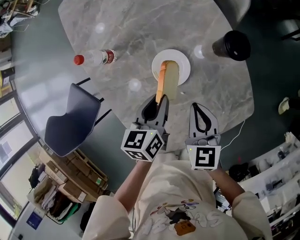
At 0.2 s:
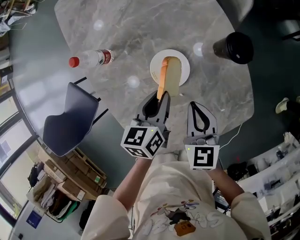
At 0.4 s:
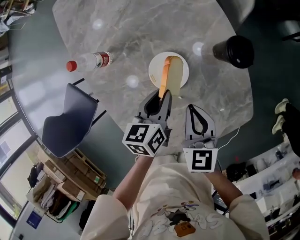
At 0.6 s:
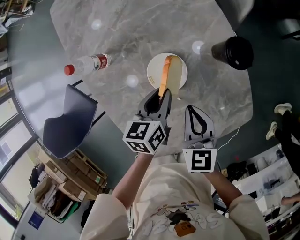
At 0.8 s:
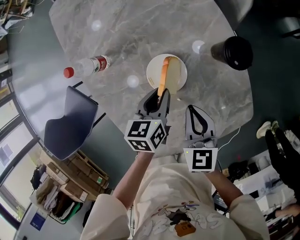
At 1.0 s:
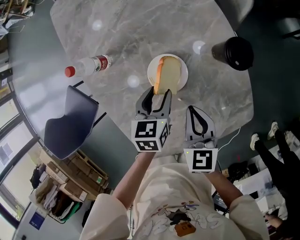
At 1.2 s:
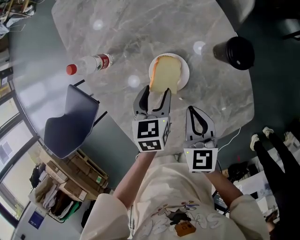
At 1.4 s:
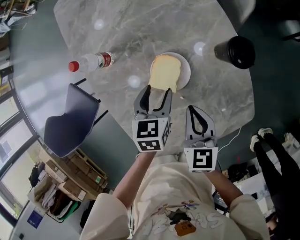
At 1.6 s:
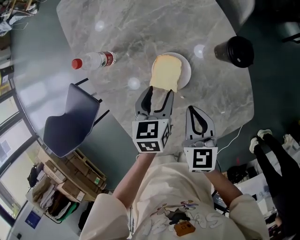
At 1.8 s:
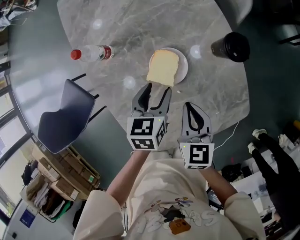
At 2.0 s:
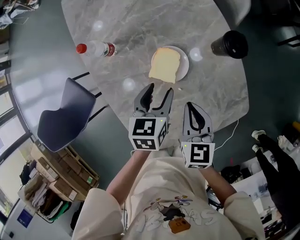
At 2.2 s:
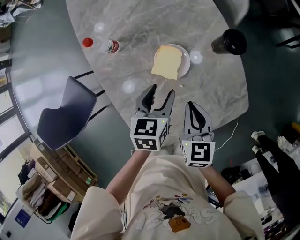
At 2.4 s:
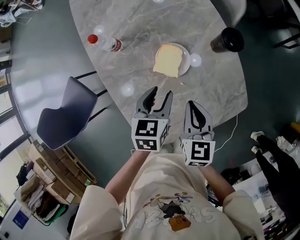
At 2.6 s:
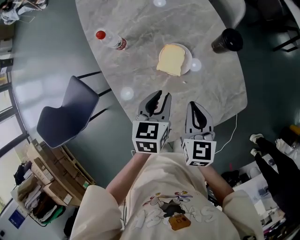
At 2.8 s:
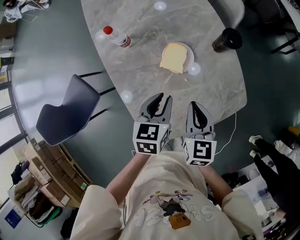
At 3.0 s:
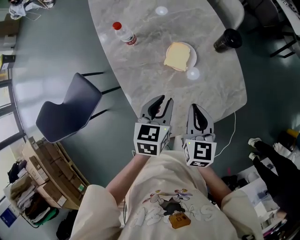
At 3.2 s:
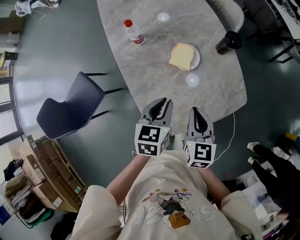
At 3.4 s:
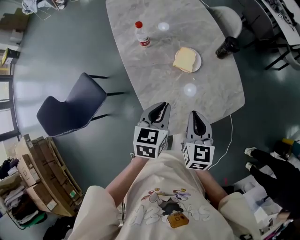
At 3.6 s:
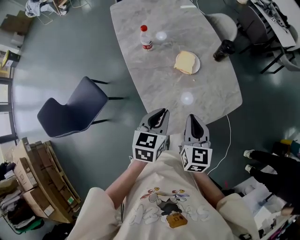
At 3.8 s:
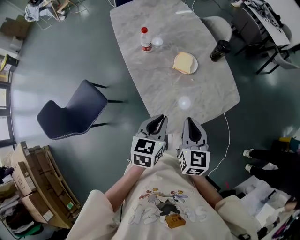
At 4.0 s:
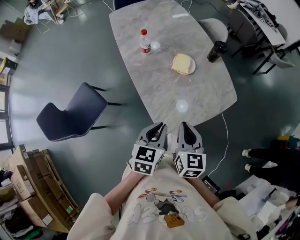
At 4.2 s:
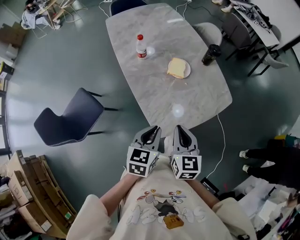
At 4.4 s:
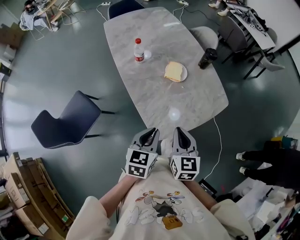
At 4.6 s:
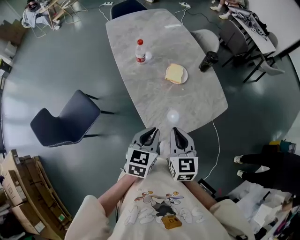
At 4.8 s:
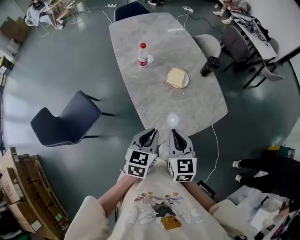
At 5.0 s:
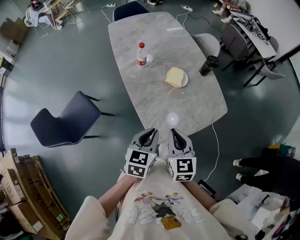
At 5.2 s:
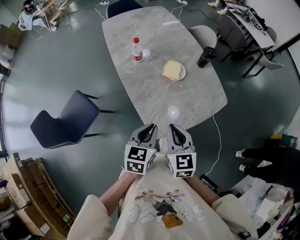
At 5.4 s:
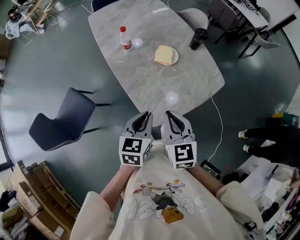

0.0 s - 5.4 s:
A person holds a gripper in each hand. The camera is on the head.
0.0 s - 1.4 s: The left gripper is displaced downward by roughly 5 cm, and opens up.
1.4 s - 2.8 s: The two grippers go about 15 cm backward and upward. The left gripper closes up.
2.8 s - 4.0 s: Both grippers move backward, some 25 cm.
4.0 s - 5.4 s: The right gripper moves to the left, roughly 5 cm.

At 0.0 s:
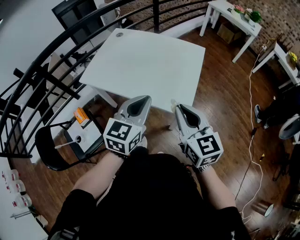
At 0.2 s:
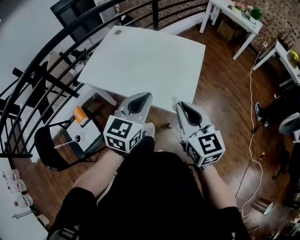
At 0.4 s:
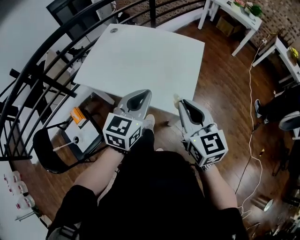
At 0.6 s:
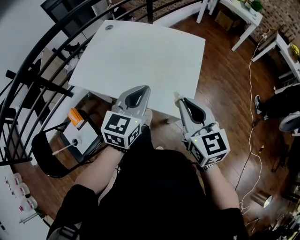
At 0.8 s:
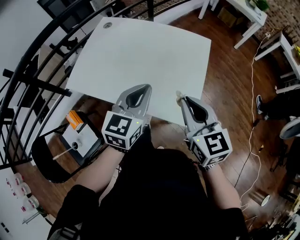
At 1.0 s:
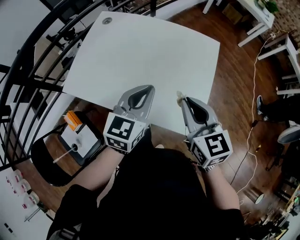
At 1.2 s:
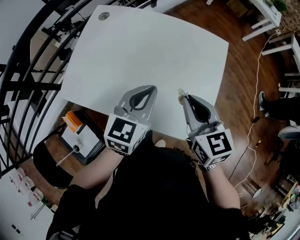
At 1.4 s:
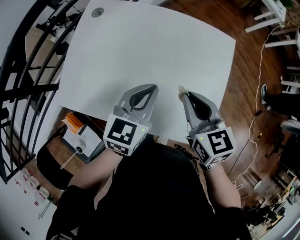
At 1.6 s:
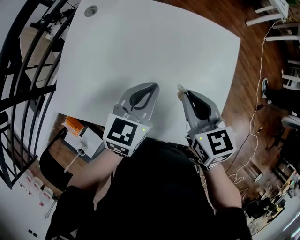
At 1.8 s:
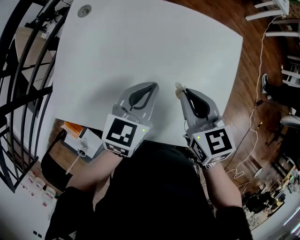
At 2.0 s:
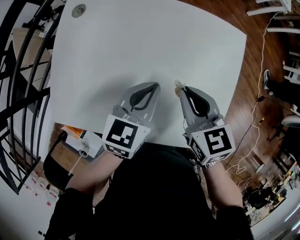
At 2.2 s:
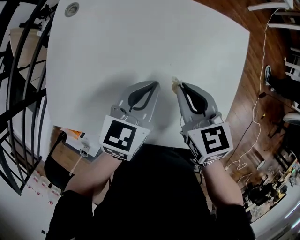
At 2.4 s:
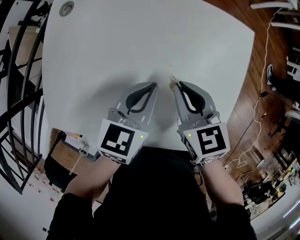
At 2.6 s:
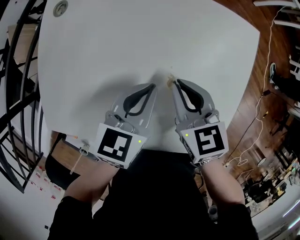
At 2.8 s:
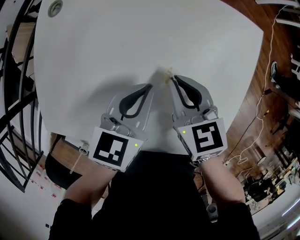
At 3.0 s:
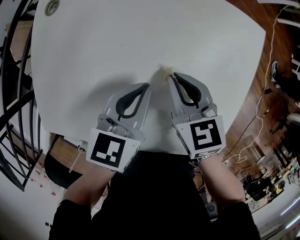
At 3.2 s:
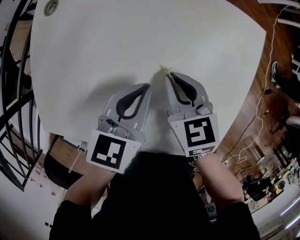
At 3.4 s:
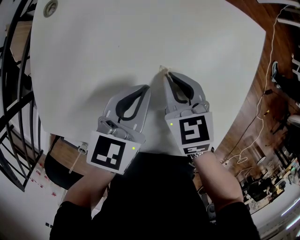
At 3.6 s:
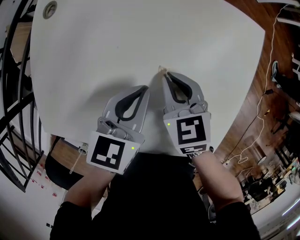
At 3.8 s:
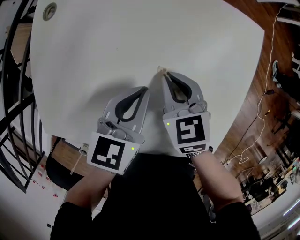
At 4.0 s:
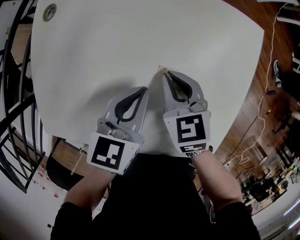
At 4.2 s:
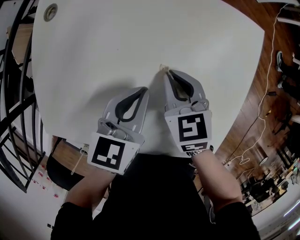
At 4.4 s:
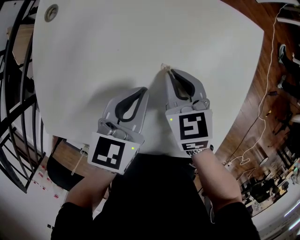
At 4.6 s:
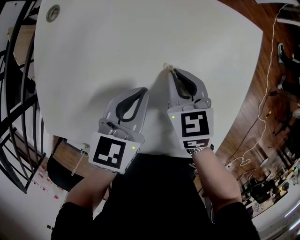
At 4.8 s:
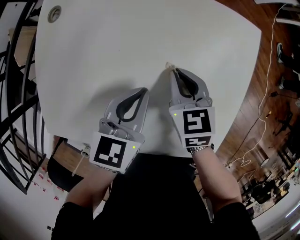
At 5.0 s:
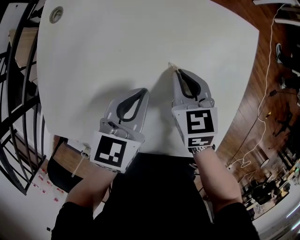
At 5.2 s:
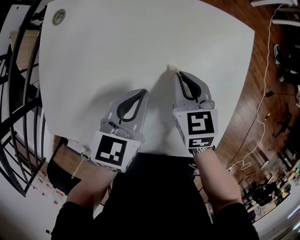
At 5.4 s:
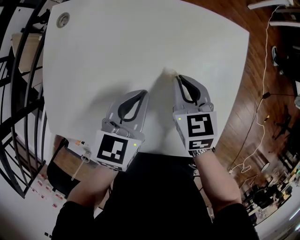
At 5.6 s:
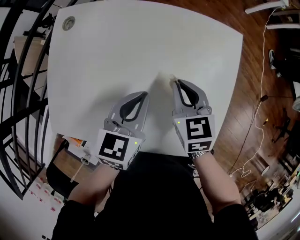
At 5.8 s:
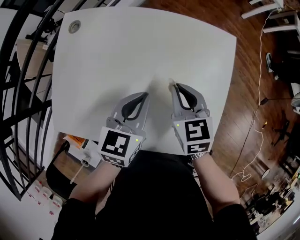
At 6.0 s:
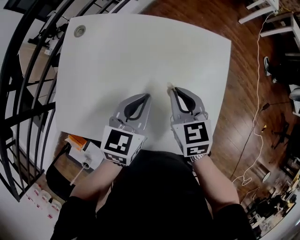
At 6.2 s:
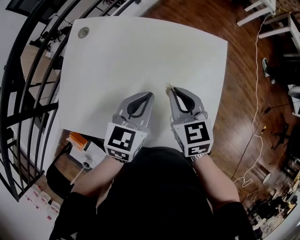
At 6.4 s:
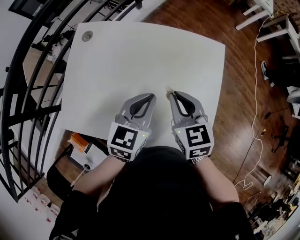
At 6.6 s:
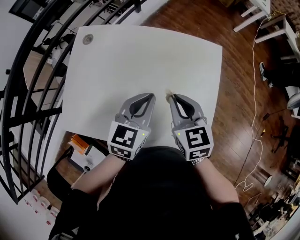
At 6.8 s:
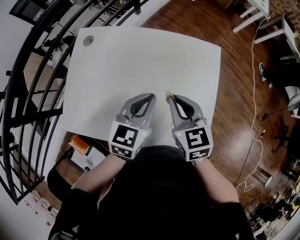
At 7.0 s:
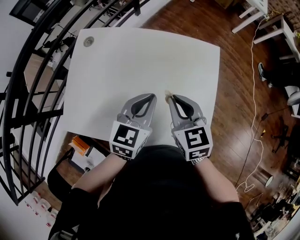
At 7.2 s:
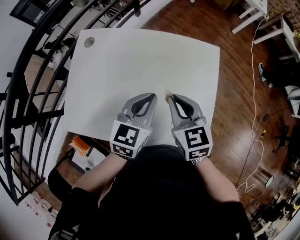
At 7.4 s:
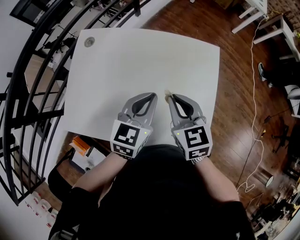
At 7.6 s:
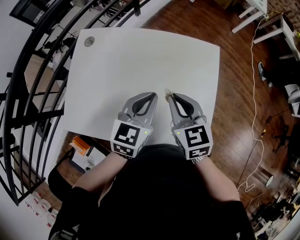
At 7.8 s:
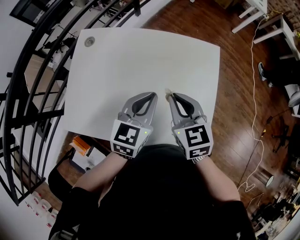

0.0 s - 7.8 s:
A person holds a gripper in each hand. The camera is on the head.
0.0 s - 1.6 s: The left gripper shifts some 35 cm forward and downward; the right gripper shifts roughly 35 cm forward, and turns by approximately 20 degrees.
1.6 s - 3.2 s: The right gripper goes some 15 cm downward and forward; the left gripper travels downward and forward by roughly 10 cm.
3.2 s - 4.6 s: The grippers move only a little.
4.6 s - 6.2 s: The left gripper is displaced upward by approximately 10 cm. The right gripper heads upward and backward, covering approximately 15 cm.
6.2 s - 7.8 s: The grippers make only small movements.

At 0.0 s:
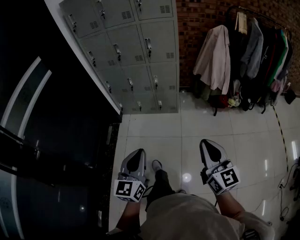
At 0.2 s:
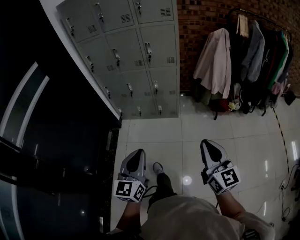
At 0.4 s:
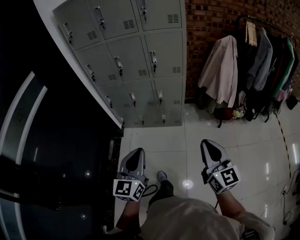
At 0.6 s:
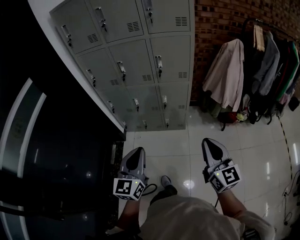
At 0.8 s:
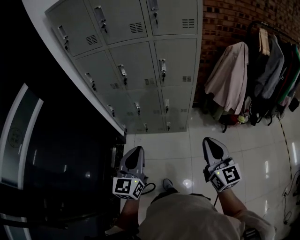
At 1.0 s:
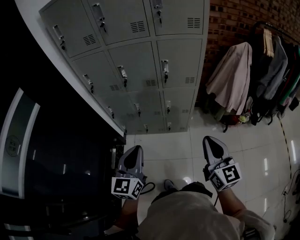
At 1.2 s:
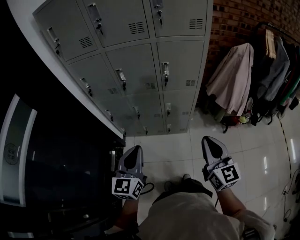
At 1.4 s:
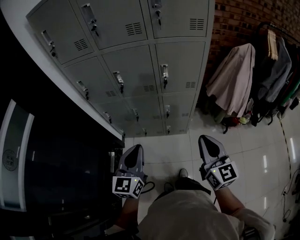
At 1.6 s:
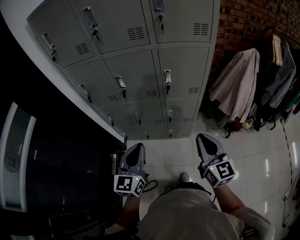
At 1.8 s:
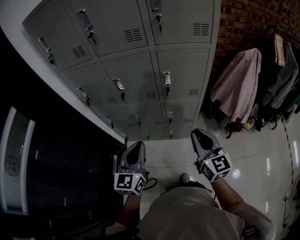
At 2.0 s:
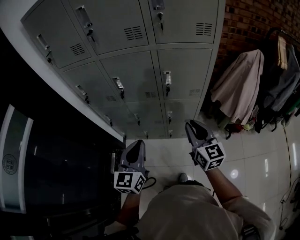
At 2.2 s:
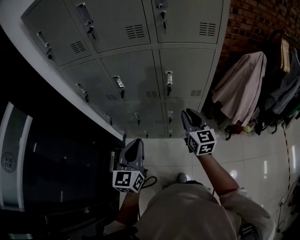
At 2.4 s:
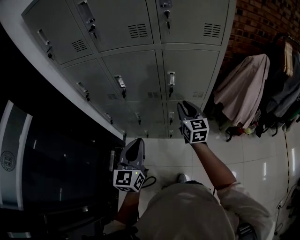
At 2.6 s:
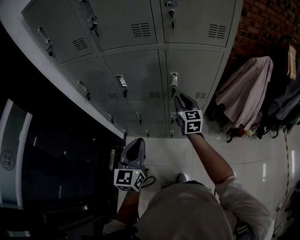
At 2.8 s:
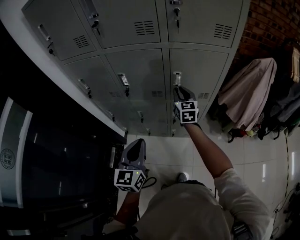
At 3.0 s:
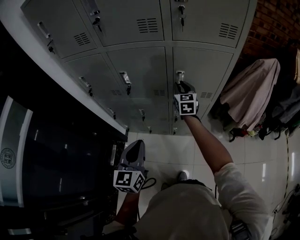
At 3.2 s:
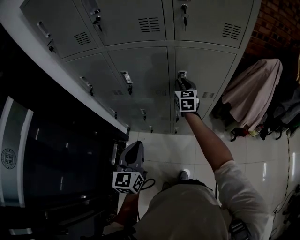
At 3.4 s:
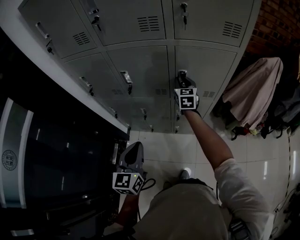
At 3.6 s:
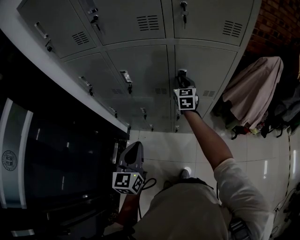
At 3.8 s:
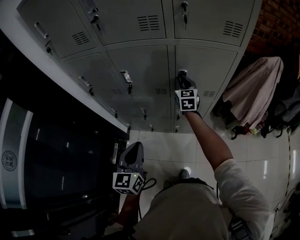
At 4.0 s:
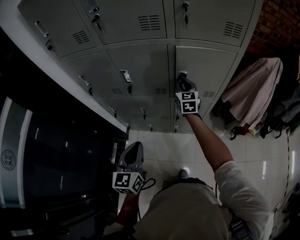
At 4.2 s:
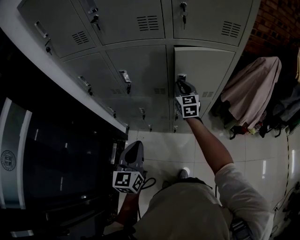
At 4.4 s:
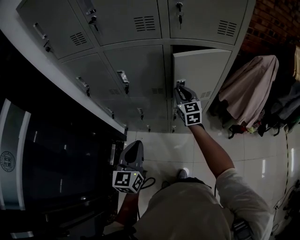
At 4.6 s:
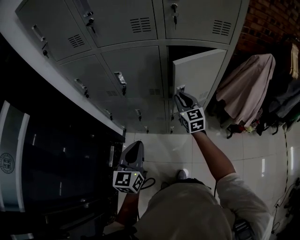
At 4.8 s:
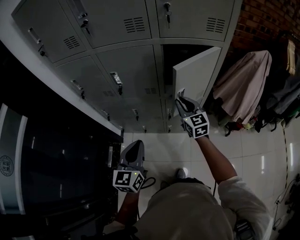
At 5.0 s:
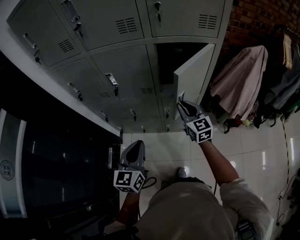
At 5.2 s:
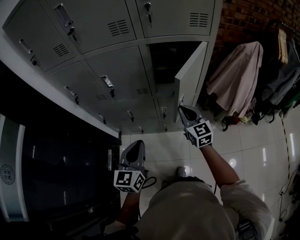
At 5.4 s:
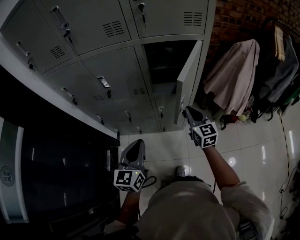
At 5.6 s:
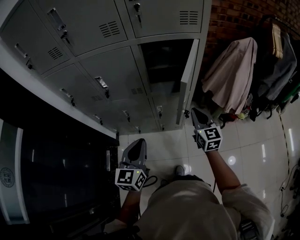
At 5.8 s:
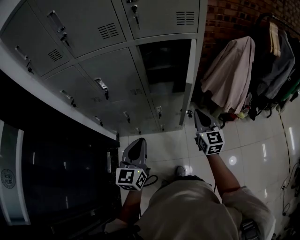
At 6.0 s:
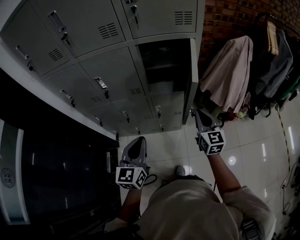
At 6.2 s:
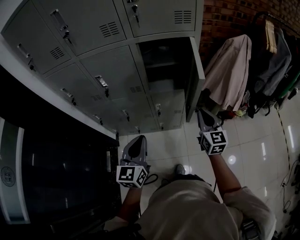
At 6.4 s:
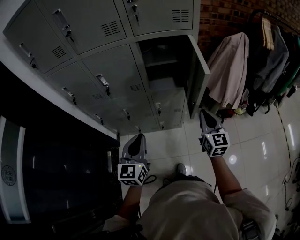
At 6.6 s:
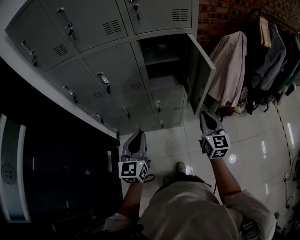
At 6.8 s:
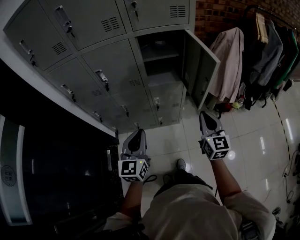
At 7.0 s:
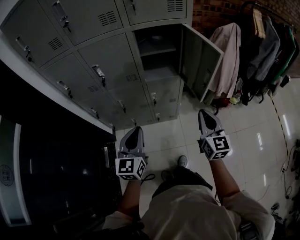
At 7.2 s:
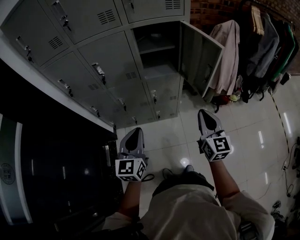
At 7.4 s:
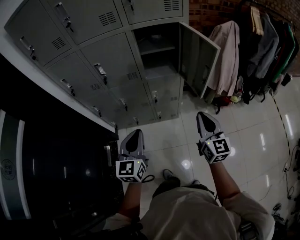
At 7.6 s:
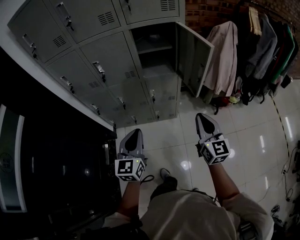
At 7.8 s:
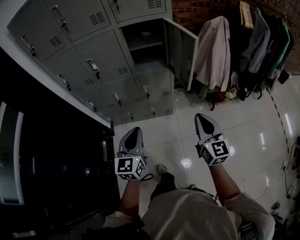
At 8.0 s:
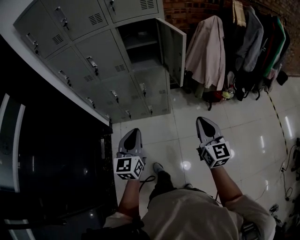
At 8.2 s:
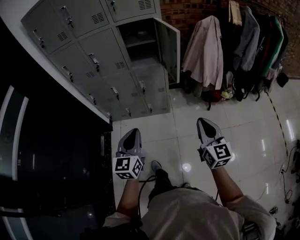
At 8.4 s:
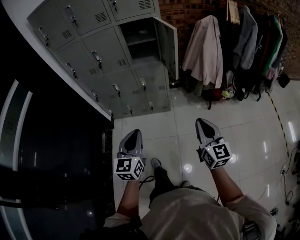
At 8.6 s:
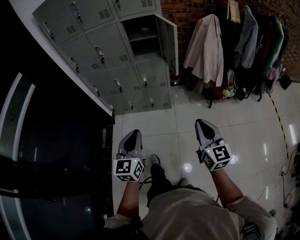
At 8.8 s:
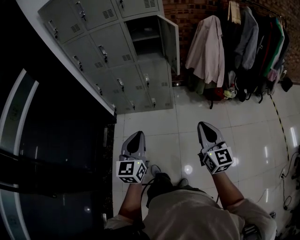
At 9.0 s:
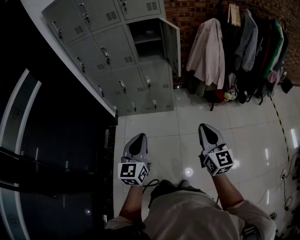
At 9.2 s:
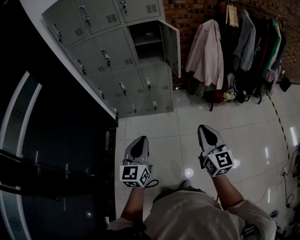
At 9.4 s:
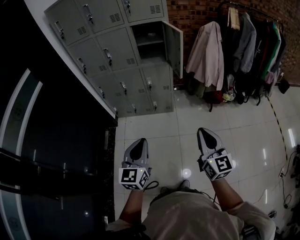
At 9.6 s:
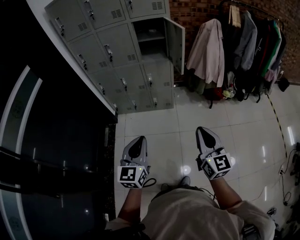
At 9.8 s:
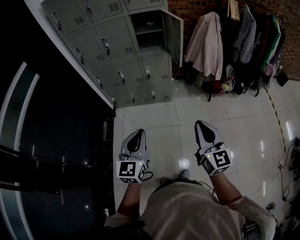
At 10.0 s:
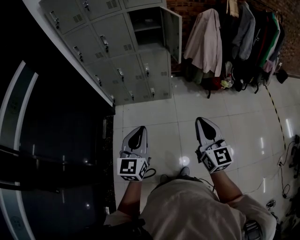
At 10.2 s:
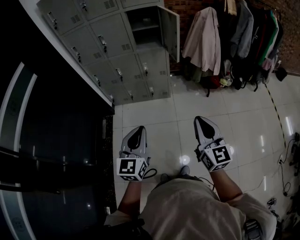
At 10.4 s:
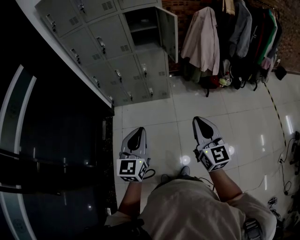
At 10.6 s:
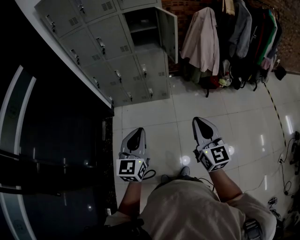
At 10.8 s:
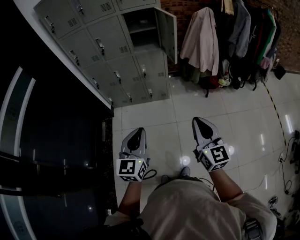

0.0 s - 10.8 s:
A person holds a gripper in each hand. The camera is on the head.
0.0 s - 1.6 s: Both grippers are carried forward, approximately 50 cm.
1.6 s - 3.0 s: The right gripper travels forward and downward by about 40 cm, and changes its angle by some 20 degrees. Meanwhile the left gripper shifts some 10 cm forward and downward.
3.0 s - 4.6 s: The right gripper heads backward, covering about 10 cm.
4.6 s - 6.2 s: The left gripper moves to the right, roughly 10 cm. The right gripper heads to the right and backward, covering approximately 25 cm.
6.2 s - 7.8 s: The right gripper heads backward, covering approximately 25 cm. The left gripper heads backward, covering roughly 15 cm.
7.8 s - 9.2 s: The grippers both shift backward by approximately 30 cm.
9.2 s - 10.8 s: The right gripper changes place by about 5 cm.
